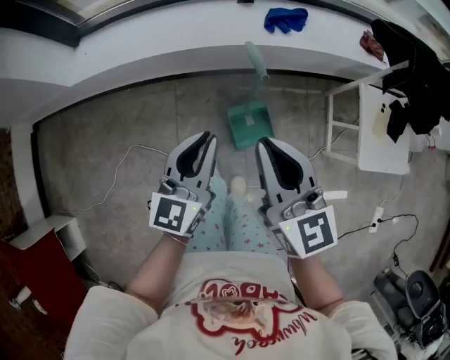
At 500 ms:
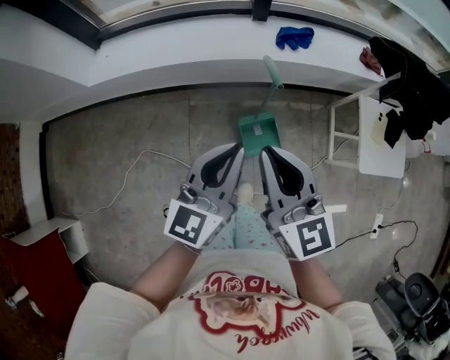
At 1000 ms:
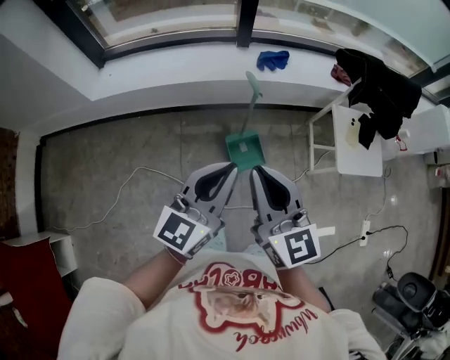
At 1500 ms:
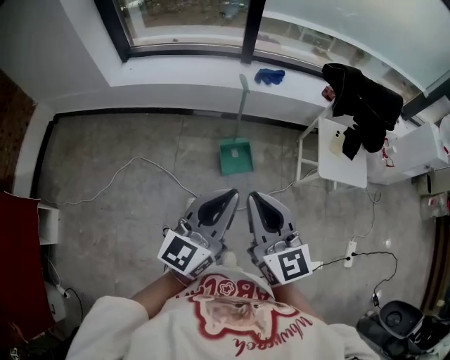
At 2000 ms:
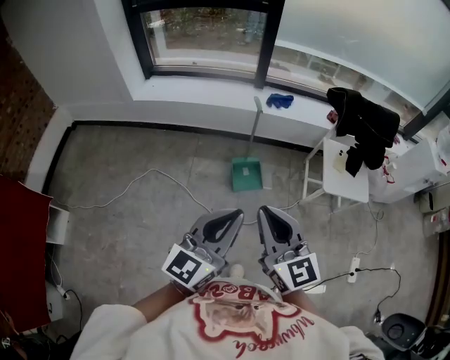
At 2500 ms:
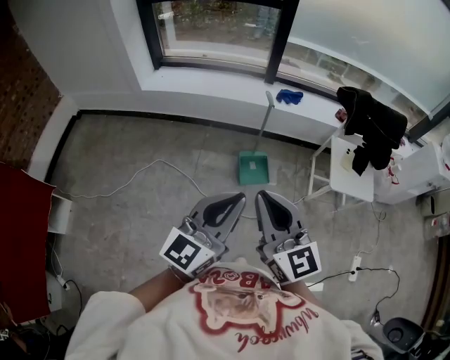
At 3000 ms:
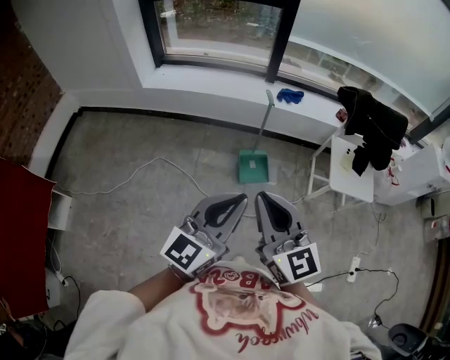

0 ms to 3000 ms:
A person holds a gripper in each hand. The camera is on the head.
0 ms to 1500 ms: The left gripper shifts about 40 cm backward and upward. The right gripper heads backward, covering about 35 cm.
1500 ms to 3000 ms: The right gripper moves backward, to the left and upward, roughly 10 cm. The left gripper moves backward and to the left, about 10 cm.

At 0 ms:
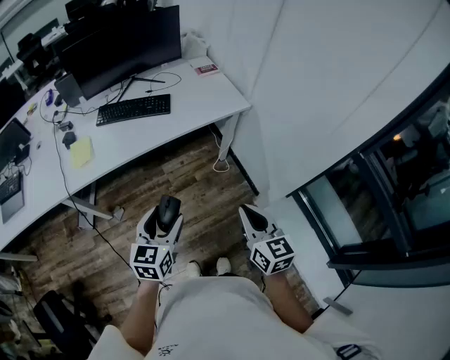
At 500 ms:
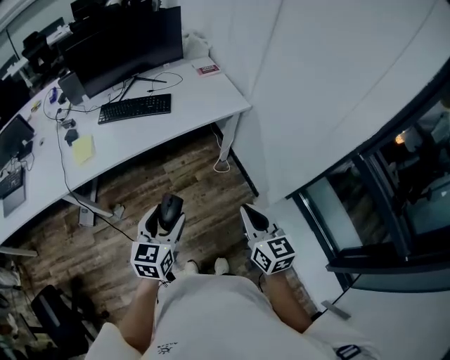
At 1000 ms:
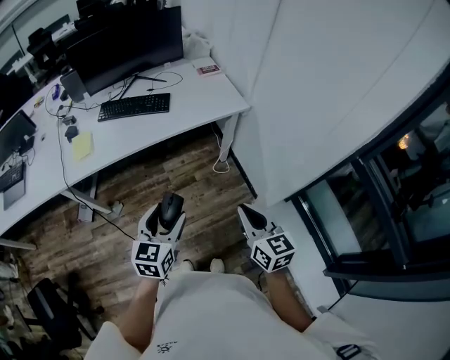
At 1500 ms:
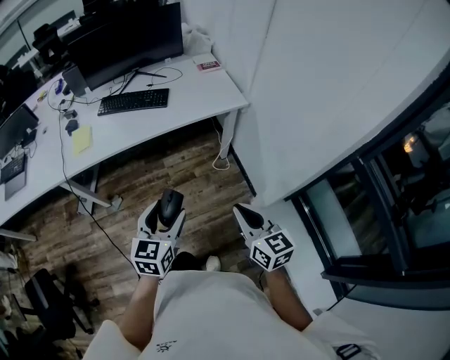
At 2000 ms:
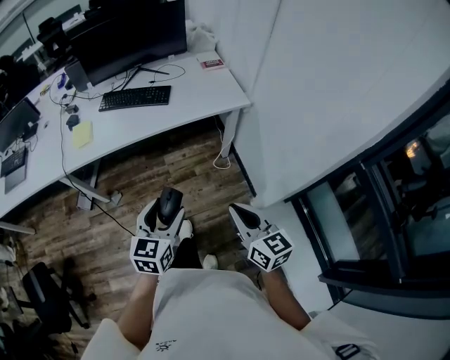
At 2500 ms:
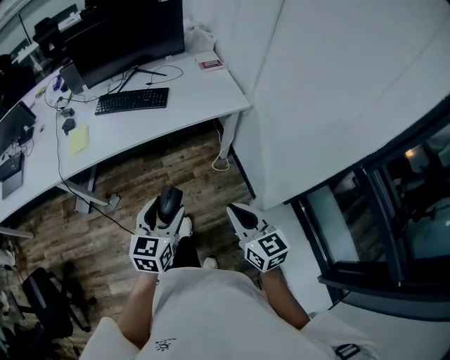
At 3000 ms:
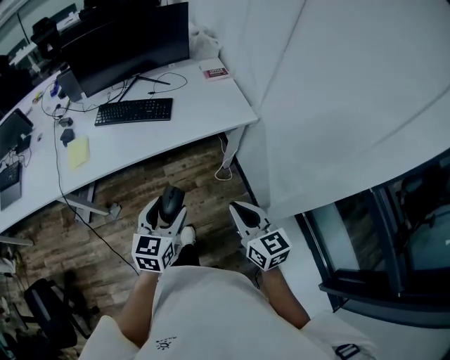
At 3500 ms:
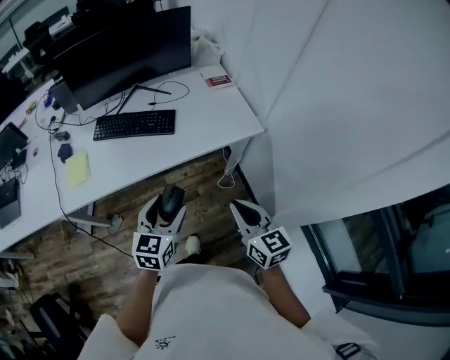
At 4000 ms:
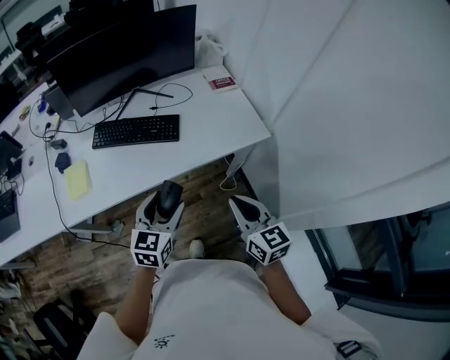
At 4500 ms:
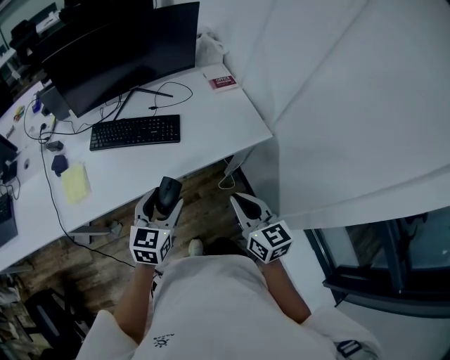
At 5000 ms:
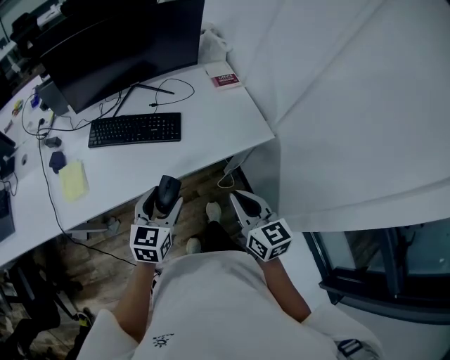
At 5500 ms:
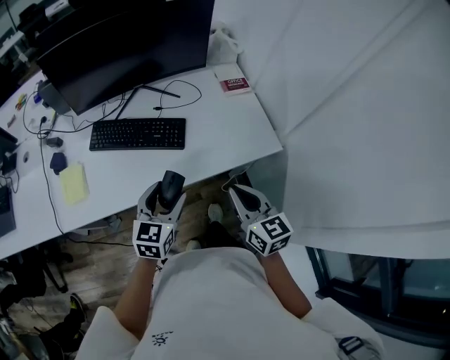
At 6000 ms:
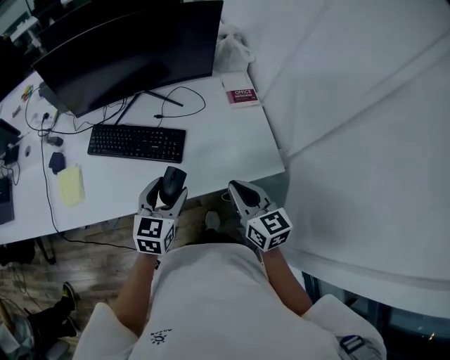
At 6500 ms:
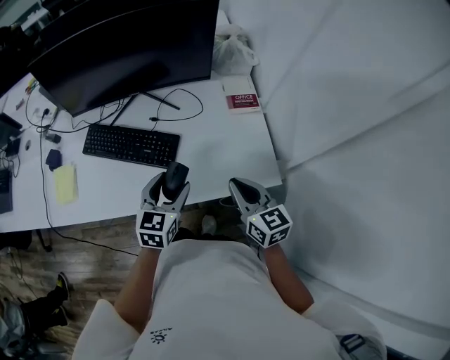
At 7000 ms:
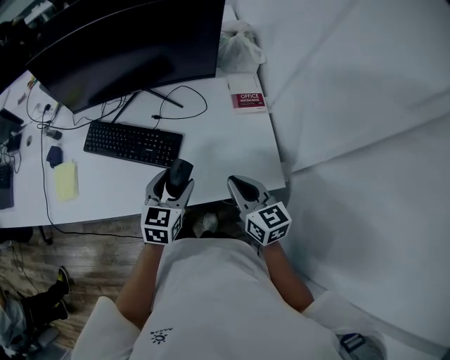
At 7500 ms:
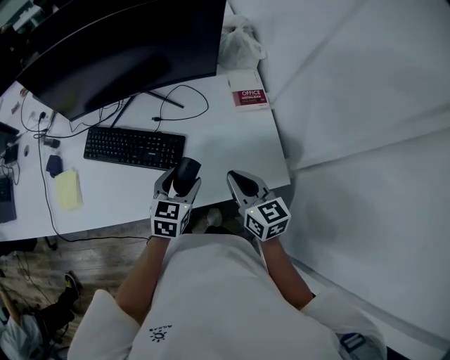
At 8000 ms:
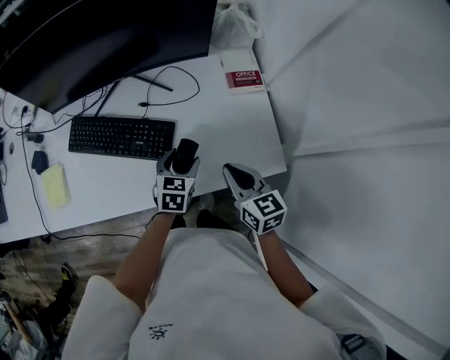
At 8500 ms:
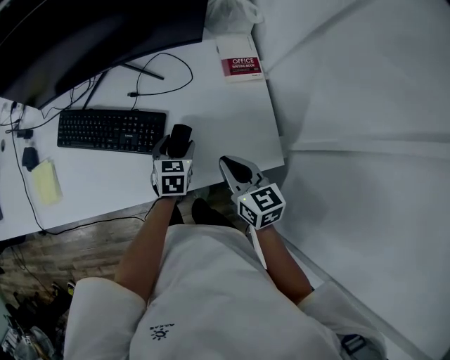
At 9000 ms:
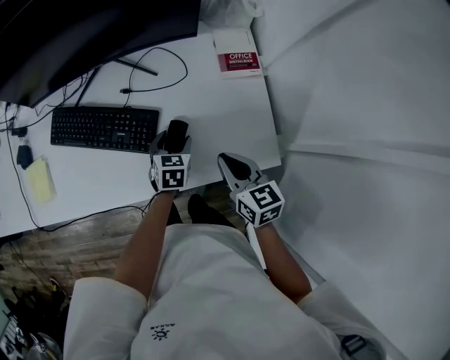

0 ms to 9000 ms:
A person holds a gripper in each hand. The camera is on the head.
0 ms to 2000 ms: The left gripper moves to the right, some 10 cm. Meanwhile the right gripper is displaced to the right by roughly 5 cm.
2000 ms to 4500 ms: Both grippers travel together forward, roughly 30 cm.
4500 ms to 7000 ms: The right gripper travels forward by approximately 25 cm. Meanwhile the left gripper moves forward and to the right, roughly 25 cm.
7000 ms to 9000 ms: The left gripper is displaced downward and forward by approximately 20 cm. The right gripper is displaced downward by roughly 10 cm.

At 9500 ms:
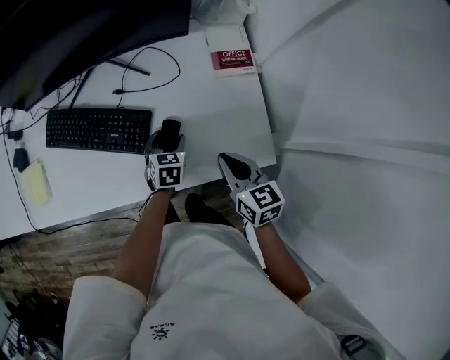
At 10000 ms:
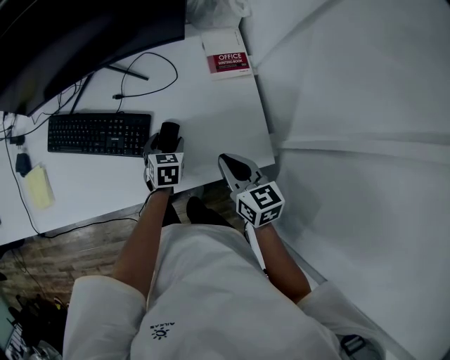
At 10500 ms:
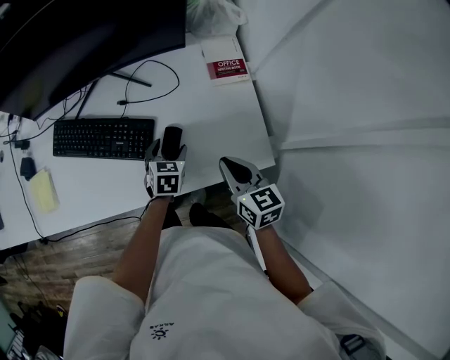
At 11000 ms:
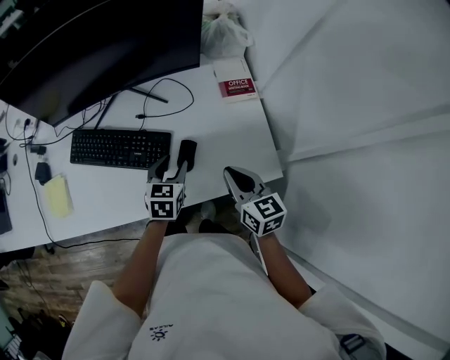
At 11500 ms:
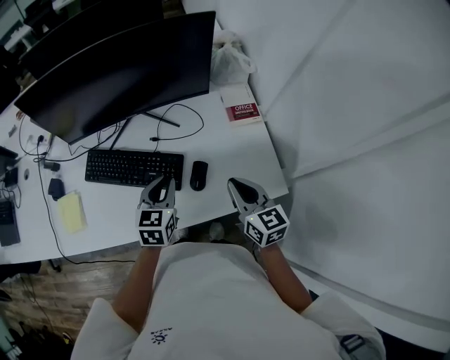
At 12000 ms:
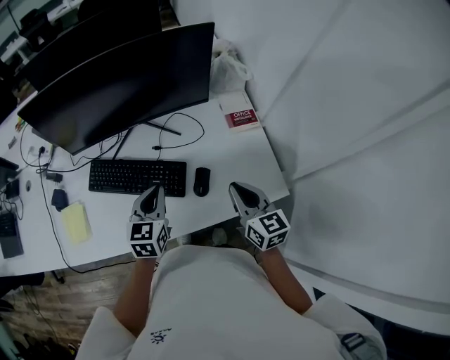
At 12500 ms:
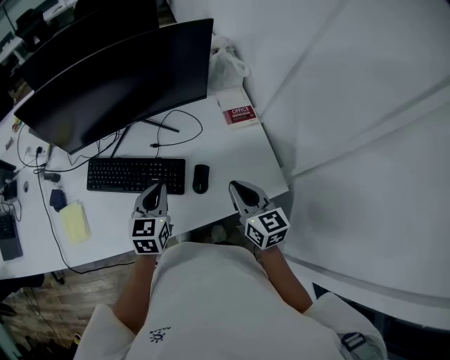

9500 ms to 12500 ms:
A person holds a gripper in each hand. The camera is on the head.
9500 ms to 11000 ms: The left gripper is displaced upward by roughly 10 cm. The right gripper moves some 5 cm.
11000 ms to 12500 ms: The right gripper moves upward, some 5 cm, while the left gripper heads to the left and upward, covering some 15 cm, and closes up.

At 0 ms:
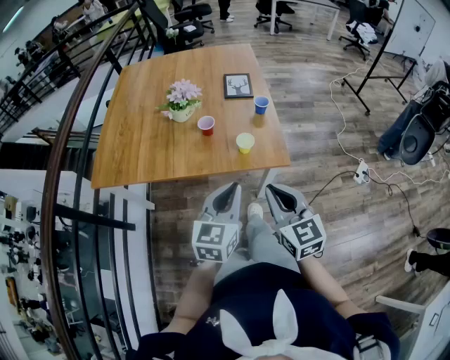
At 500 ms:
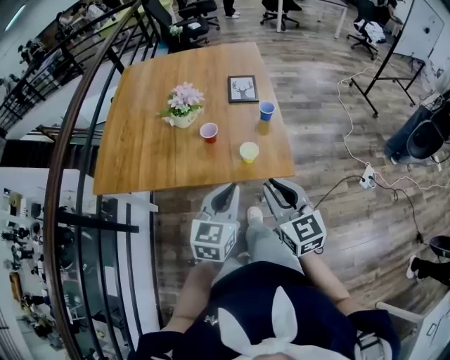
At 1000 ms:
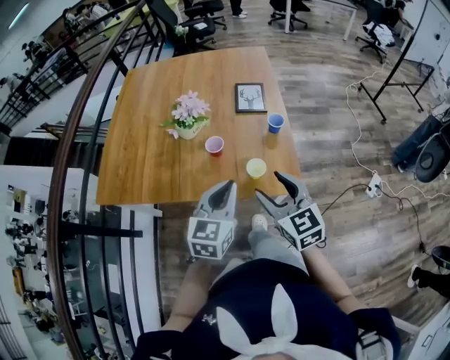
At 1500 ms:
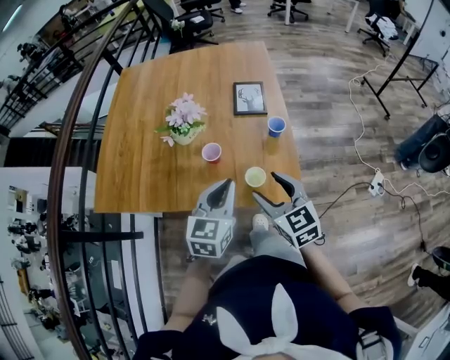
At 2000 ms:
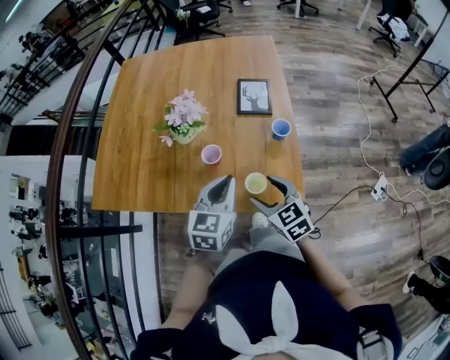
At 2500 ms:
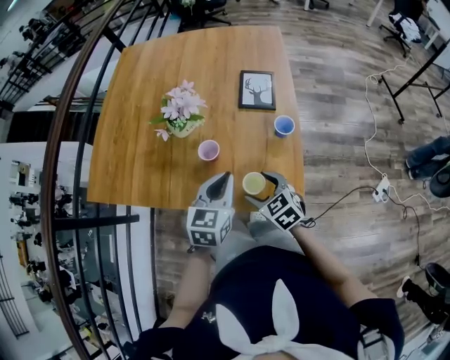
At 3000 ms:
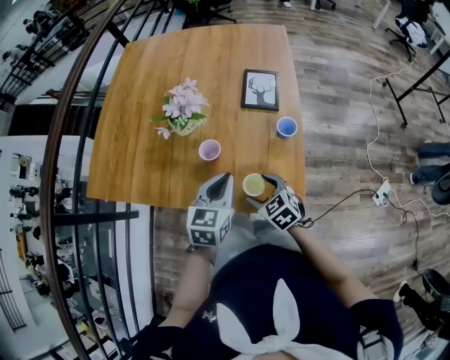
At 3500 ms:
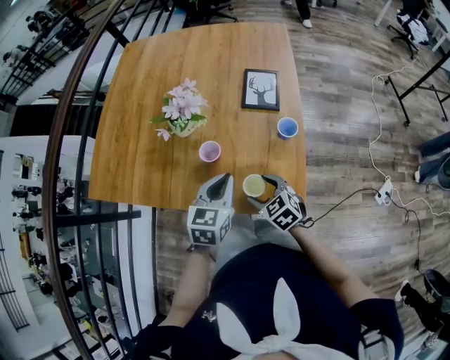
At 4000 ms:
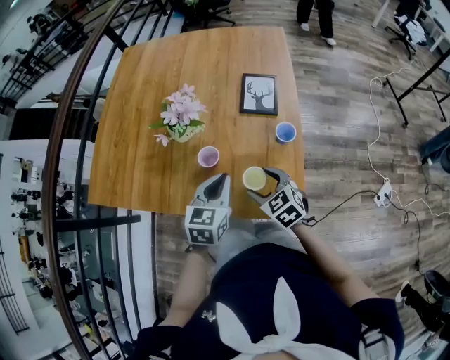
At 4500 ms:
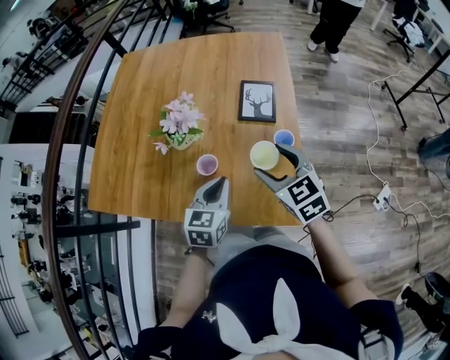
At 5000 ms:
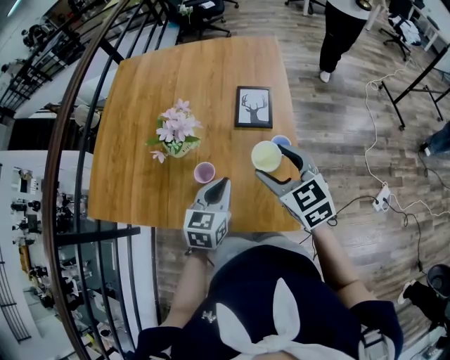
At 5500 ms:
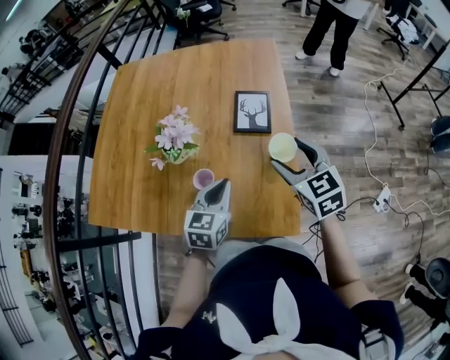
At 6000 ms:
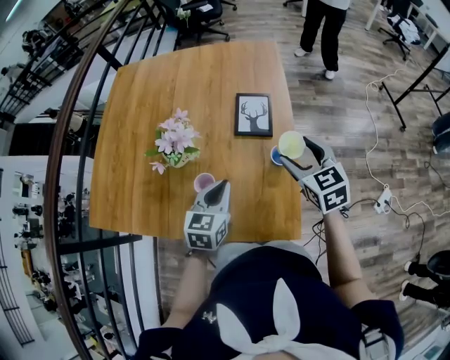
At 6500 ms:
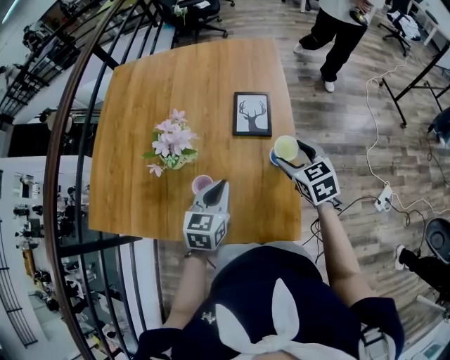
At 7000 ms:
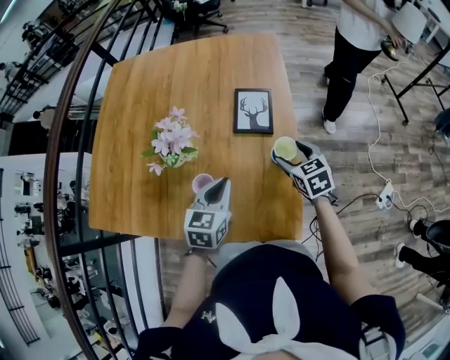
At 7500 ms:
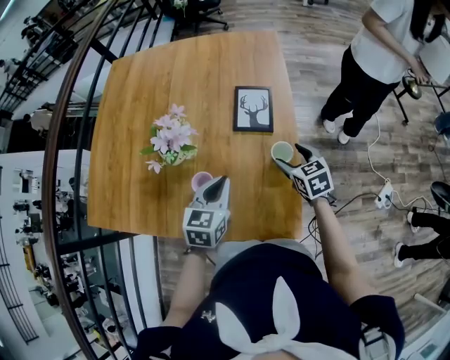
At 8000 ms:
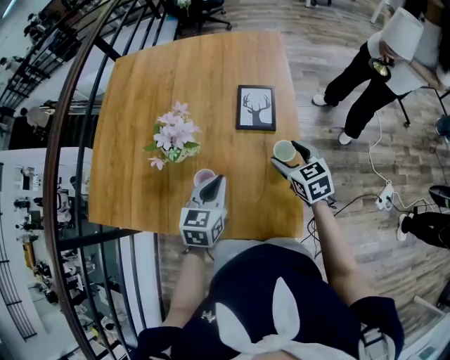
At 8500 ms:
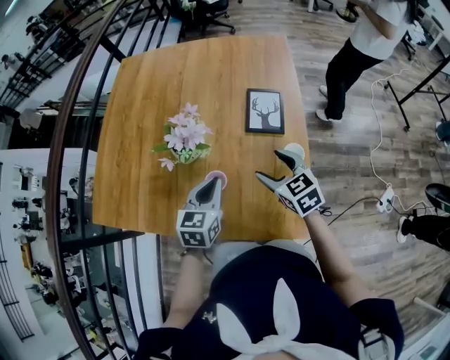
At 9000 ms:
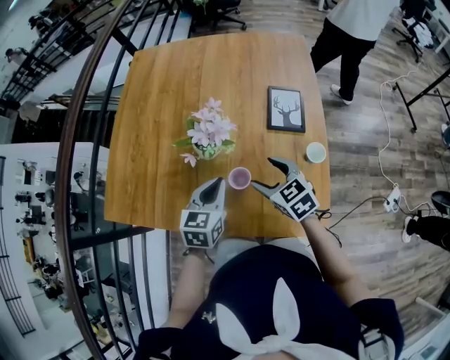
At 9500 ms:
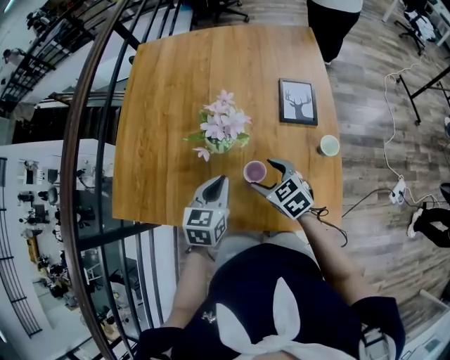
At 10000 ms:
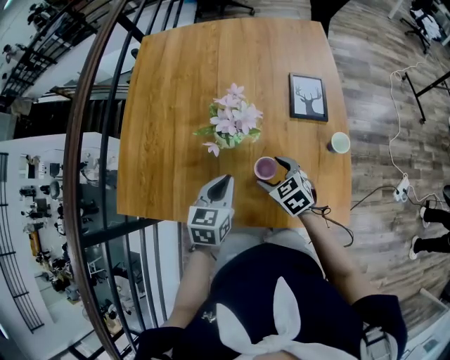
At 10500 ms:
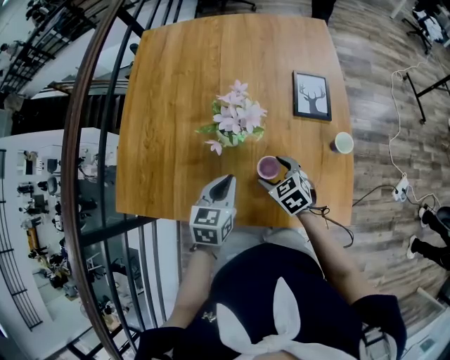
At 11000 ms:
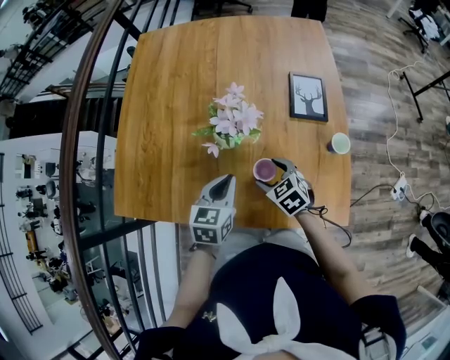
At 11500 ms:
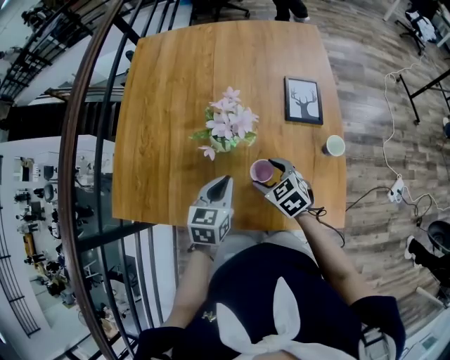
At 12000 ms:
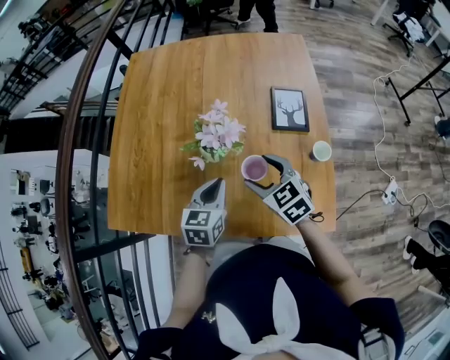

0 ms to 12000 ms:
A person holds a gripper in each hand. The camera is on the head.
0 ms to 2000 ms: The right gripper moves forward and downward, some 30 cm, swivels approximately 30 degrees, and opens up, while the left gripper goes roughly 25 cm forward.
2000 ms to 4000 ms: The left gripper is displaced downward by approximately 5 cm; the right gripper goes roughly 10 cm downward and forward.
4000 ms to 6000 ms: The right gripper is displaced to the right, forward and upward by roughly 25 cm, and swivels about 20 degrees, while the left gripper heads forward, covering some 5 cm.
6000 ms to 8000 ms: The right gripper is displaced downward by approximately 10 cm.
8000 ms to 10000 ms: The grippers both shift to the left by roughly 25 cm.
10000 ms to 12000 ms: The right gripper heads upward, covering about 10 cm.
